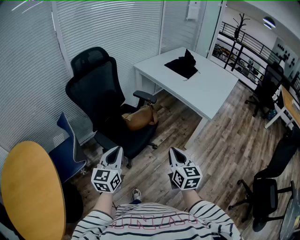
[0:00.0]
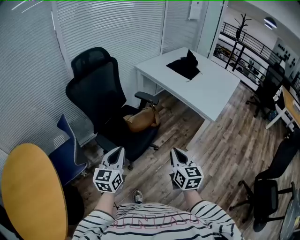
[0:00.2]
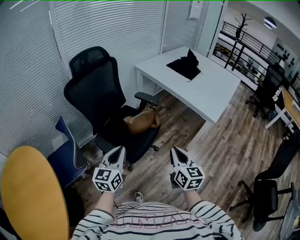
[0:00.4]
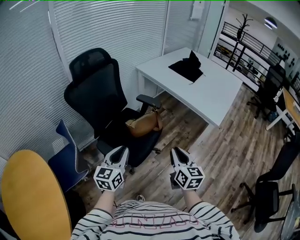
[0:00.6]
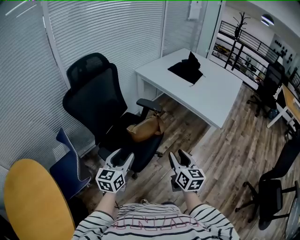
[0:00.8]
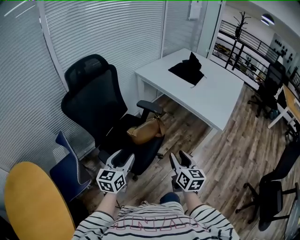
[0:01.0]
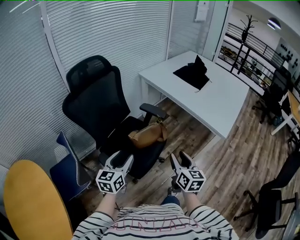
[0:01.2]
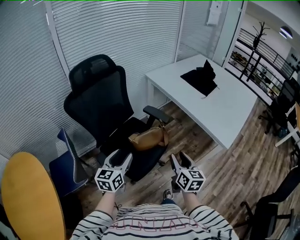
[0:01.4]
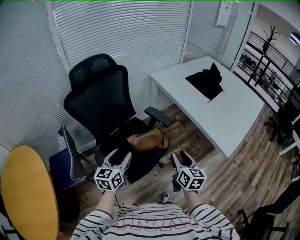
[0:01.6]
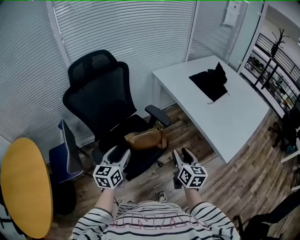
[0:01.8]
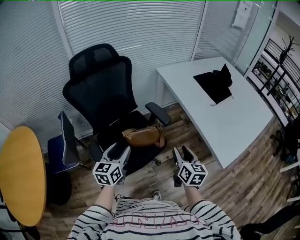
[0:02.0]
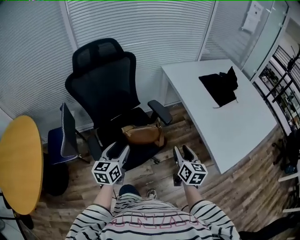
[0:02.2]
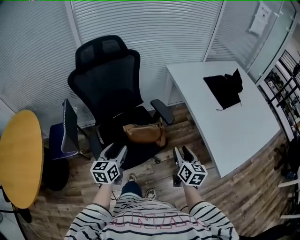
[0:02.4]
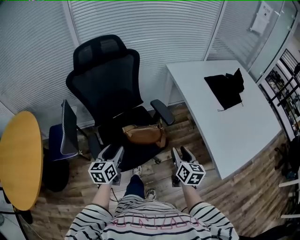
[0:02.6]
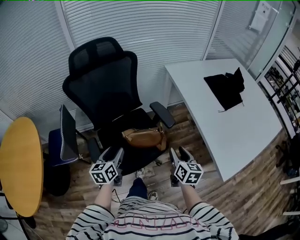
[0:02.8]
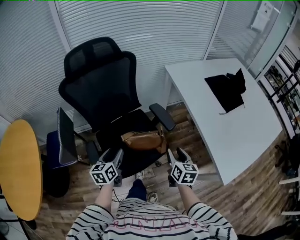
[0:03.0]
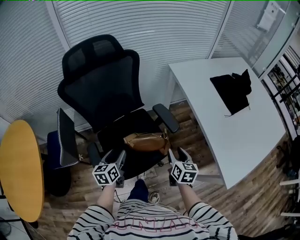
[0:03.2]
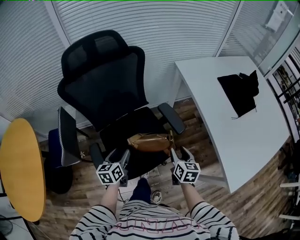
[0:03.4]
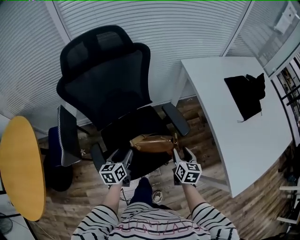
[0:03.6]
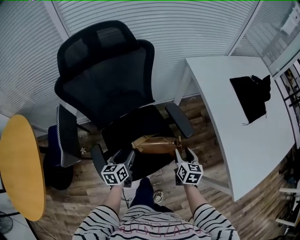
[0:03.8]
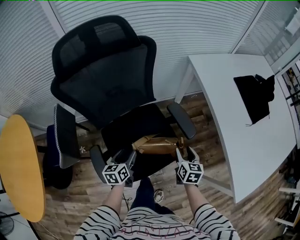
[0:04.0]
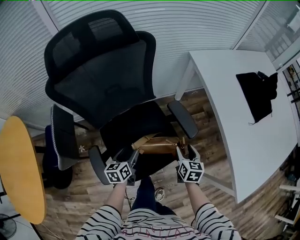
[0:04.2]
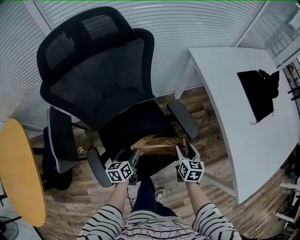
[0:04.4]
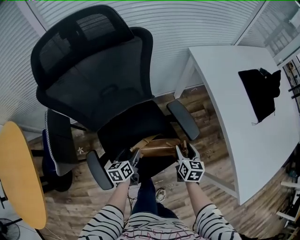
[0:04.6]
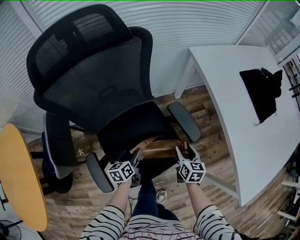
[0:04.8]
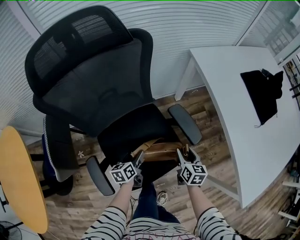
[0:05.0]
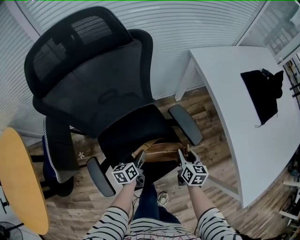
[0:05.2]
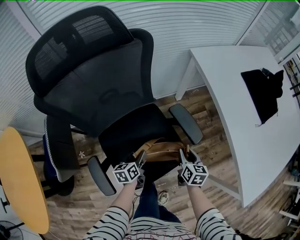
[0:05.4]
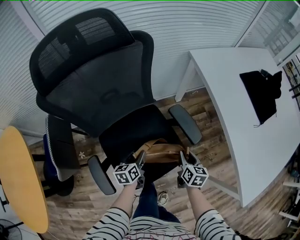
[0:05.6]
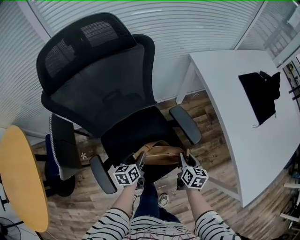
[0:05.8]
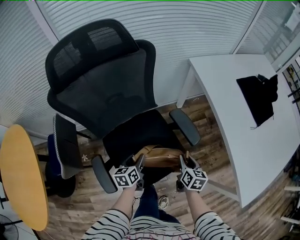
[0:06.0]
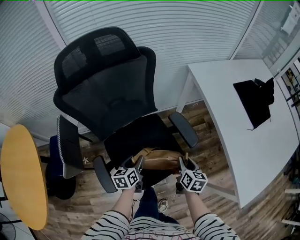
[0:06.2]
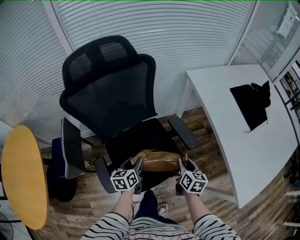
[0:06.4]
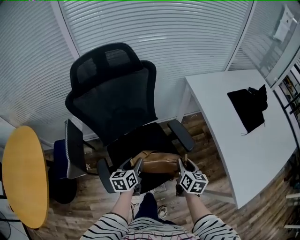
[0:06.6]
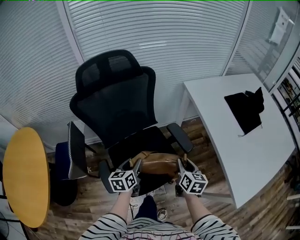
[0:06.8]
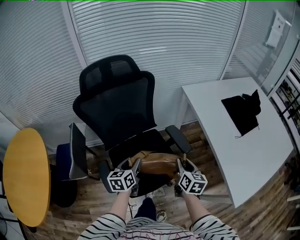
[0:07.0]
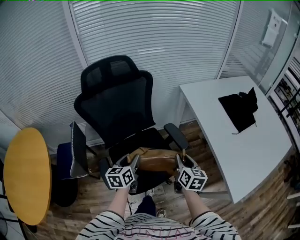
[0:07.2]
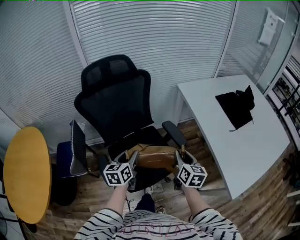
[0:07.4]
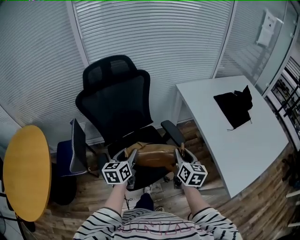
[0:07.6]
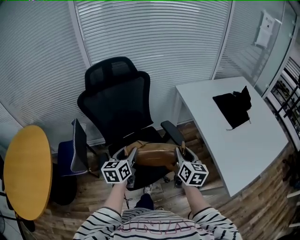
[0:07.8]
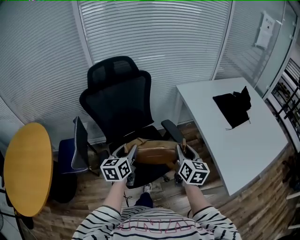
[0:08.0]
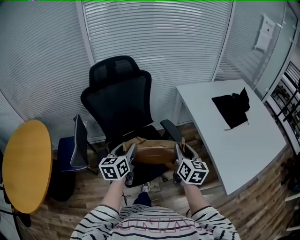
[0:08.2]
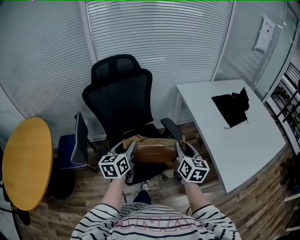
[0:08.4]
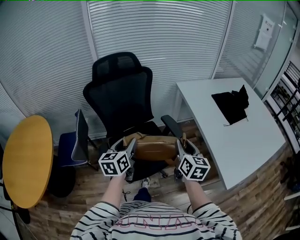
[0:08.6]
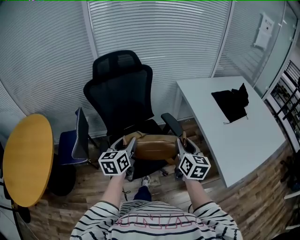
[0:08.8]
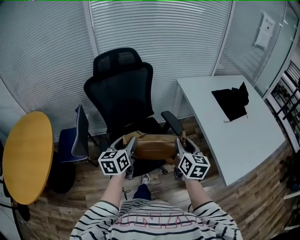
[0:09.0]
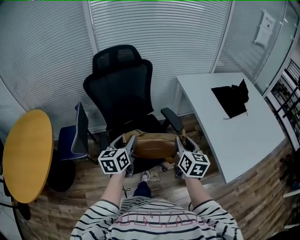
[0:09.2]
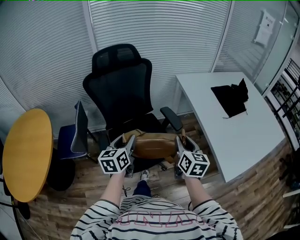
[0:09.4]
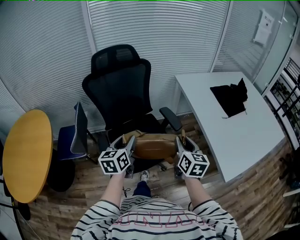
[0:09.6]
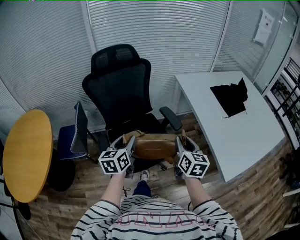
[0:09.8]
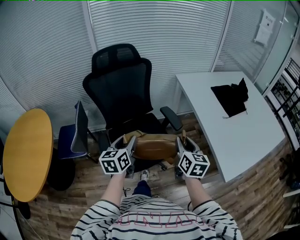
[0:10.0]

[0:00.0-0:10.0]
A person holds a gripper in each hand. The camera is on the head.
0:00.0 to 0:01.4: The two grippers go approximately 20 cm forward. The right gripper opens; the left gripper opens its fingers.
0:01.4 to 0:02.8: The right gripper travels forward, to the right and downward by roughly 20 cm. Meanwhile the left gripper moves downward and forward, approximately 10 cm, and swivels some 30 degrees.
0:02.8 to 0:04.2: The grippers both shift downward and forward by about 20 cm.
0:04.2 to 0:05.8: The right gripper closes.
0:05.8 to 0:07.2: Both grippers travel together upward, about 20 cm.
0:07.2 to 0:08.6: The grippers both shift upward and backward by approximately 15 cm.
0:08.6 to 0:10.0: The grippers move only a little.

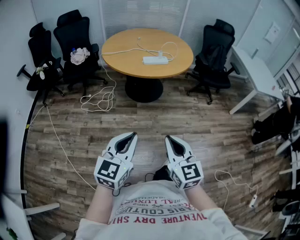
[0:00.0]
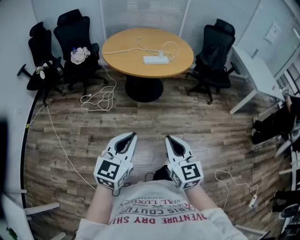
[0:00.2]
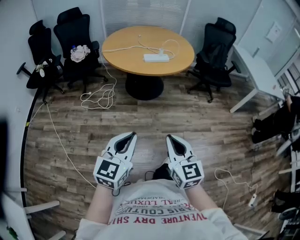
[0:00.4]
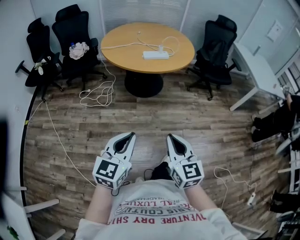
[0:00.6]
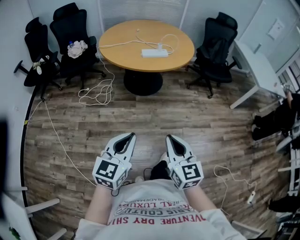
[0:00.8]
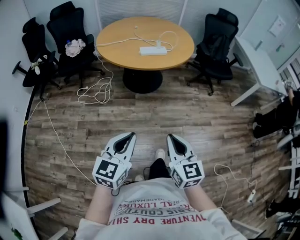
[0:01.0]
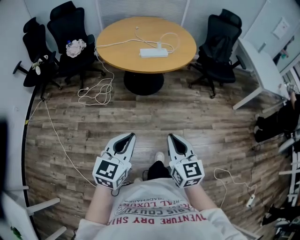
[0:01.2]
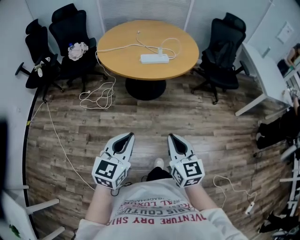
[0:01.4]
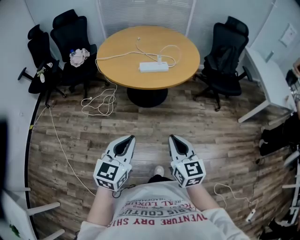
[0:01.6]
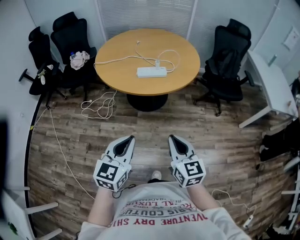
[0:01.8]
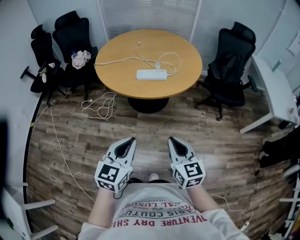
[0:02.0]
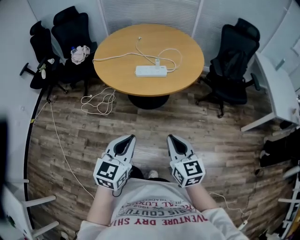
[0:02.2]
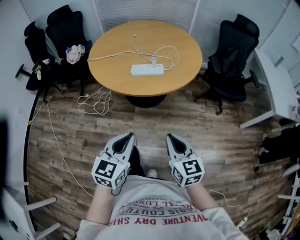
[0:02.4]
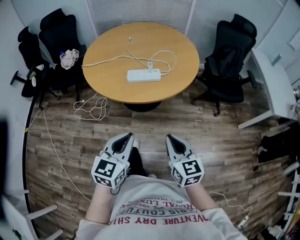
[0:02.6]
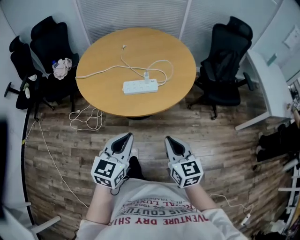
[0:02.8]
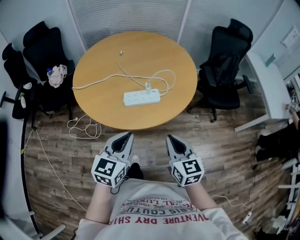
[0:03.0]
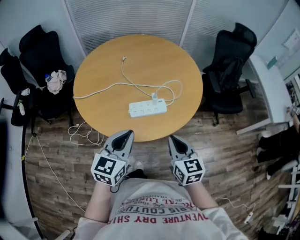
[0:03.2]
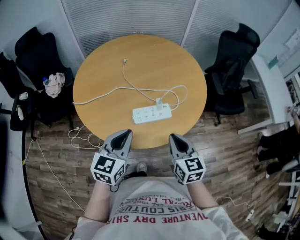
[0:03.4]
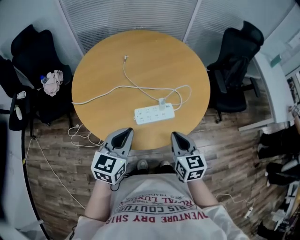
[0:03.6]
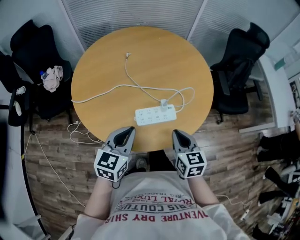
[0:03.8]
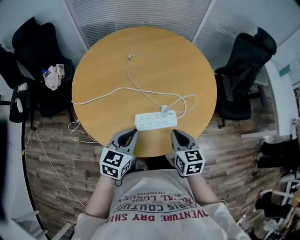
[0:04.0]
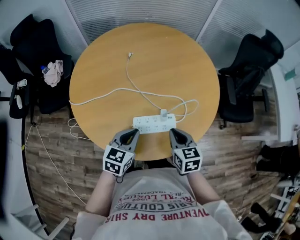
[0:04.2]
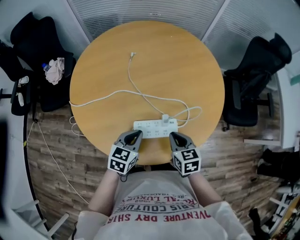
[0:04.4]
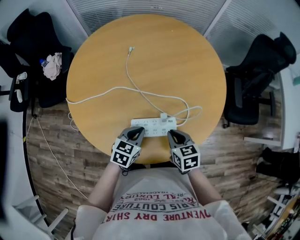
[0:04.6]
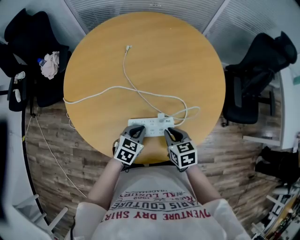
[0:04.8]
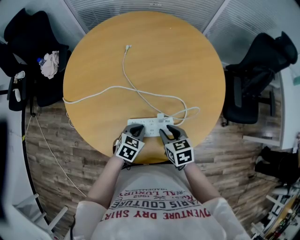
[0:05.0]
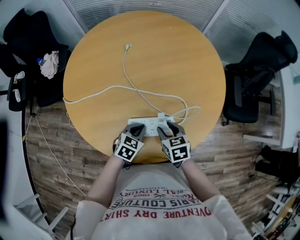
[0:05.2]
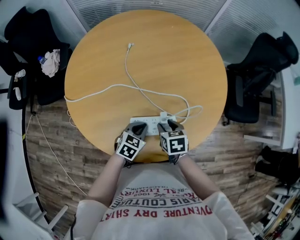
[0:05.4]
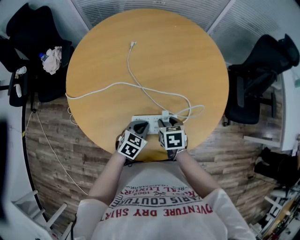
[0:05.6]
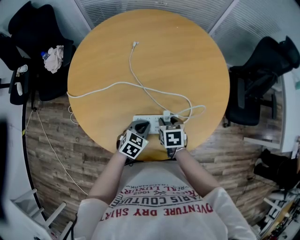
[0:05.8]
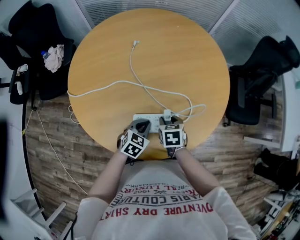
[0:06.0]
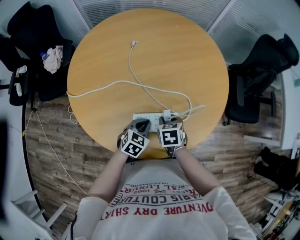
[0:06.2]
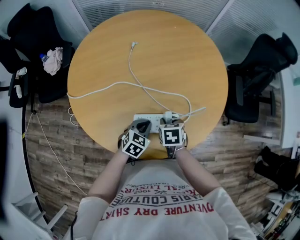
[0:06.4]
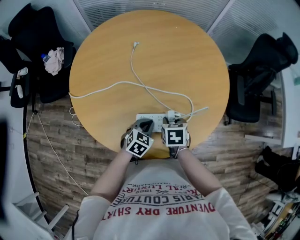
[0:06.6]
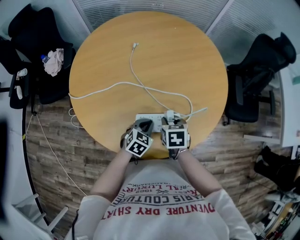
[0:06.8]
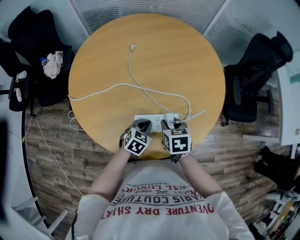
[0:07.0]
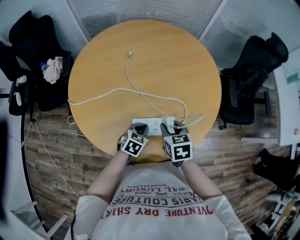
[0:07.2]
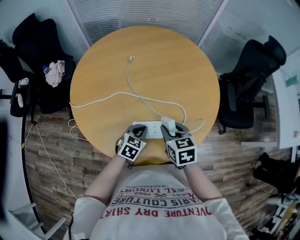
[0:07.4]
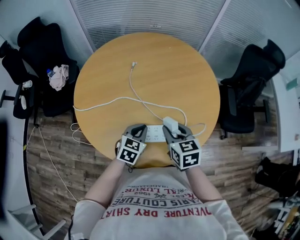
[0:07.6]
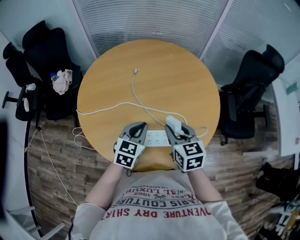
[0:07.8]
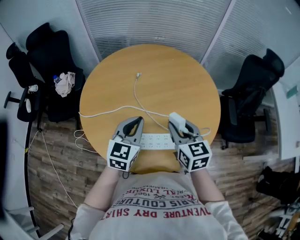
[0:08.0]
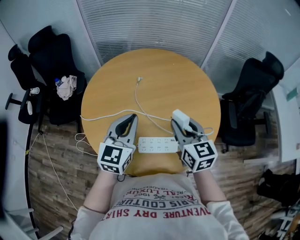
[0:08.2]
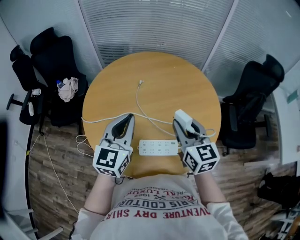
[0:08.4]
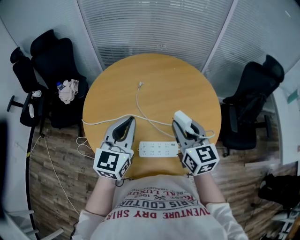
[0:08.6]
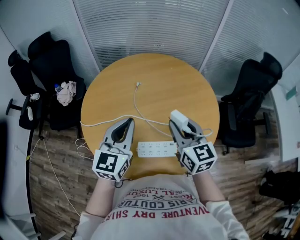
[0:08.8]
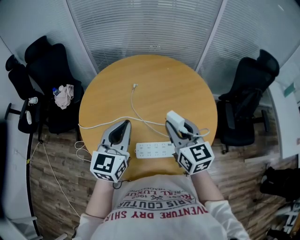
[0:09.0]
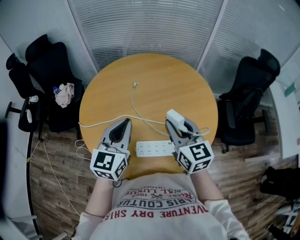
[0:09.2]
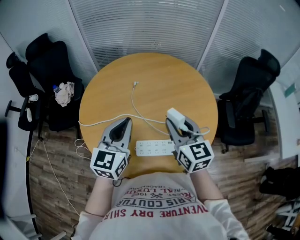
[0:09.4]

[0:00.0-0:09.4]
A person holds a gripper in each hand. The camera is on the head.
0:00.0 to 0:01.6: The left gripper shifts approximately 15 cm forward. Meanwhile the right gripper goes some 20 cm forward and to the right.
0:01.6 to 0:03.2: The grippers both shift forward by approximately 40 cm.
0:03.2 to 0:04.8: The right gripper heads forward and downward, covering roughly 25 cm, and turns by approximately 30 degrees; the left gripper goes approximately 30 cm downward and forward, and points its fingers roughly 30 degrees further downward.
0:04.8 to 0:06.2: The right gripper moves about 5 cm, and opens up.
0:06.2 to 0:07.8: The two grippers go roughly 20 cm upward. The right gripper tips its fingers upward by roughly 30 degrees. The left gripper turns by some 20 degrees.
0:07.8 to 0:09.4: The left gripper is displaced upward by some 15 cm, and rotates roughly 20 degrees. Meanwhile the right gripper shifts roughly 10 cm upward.

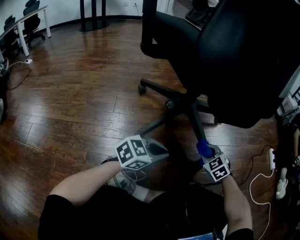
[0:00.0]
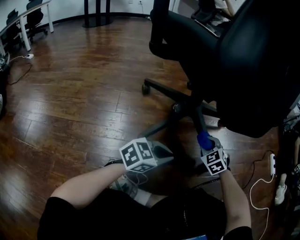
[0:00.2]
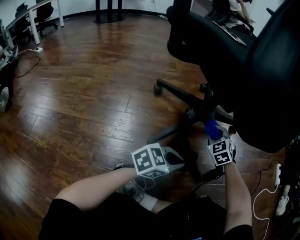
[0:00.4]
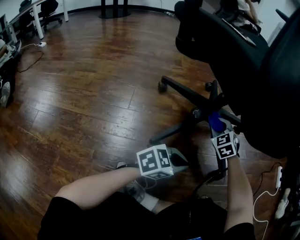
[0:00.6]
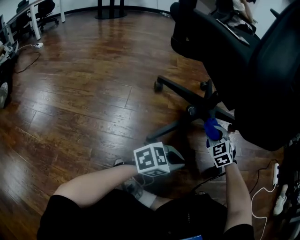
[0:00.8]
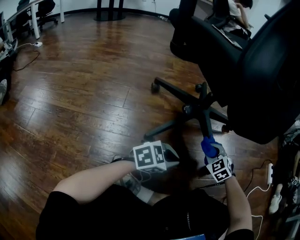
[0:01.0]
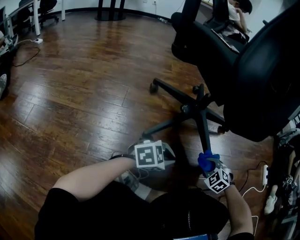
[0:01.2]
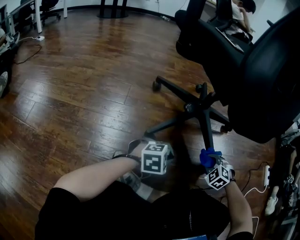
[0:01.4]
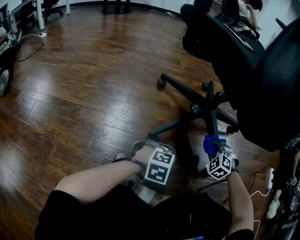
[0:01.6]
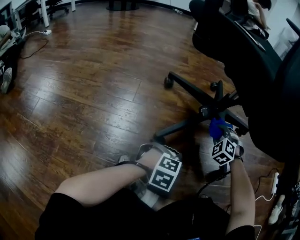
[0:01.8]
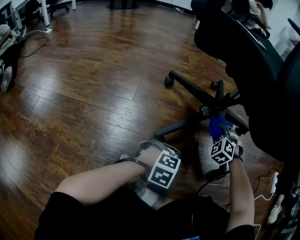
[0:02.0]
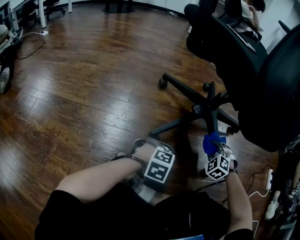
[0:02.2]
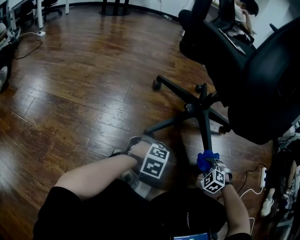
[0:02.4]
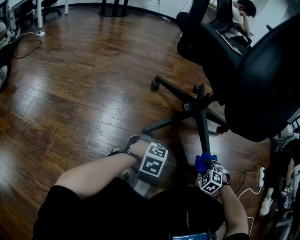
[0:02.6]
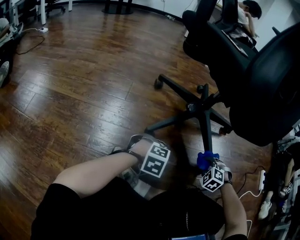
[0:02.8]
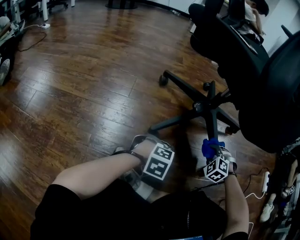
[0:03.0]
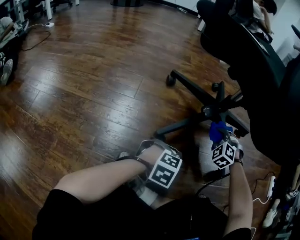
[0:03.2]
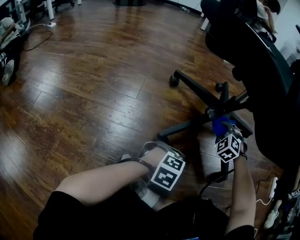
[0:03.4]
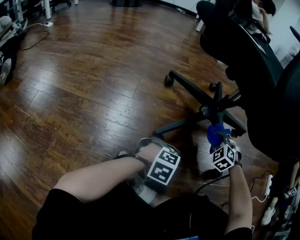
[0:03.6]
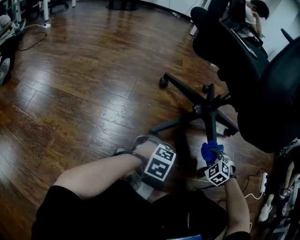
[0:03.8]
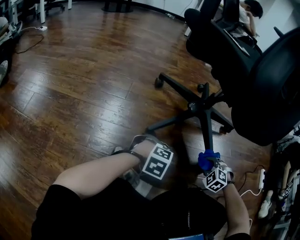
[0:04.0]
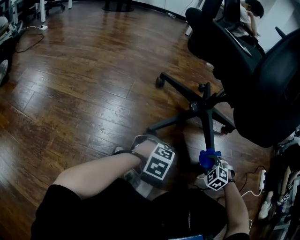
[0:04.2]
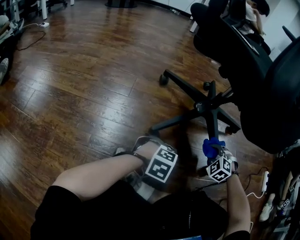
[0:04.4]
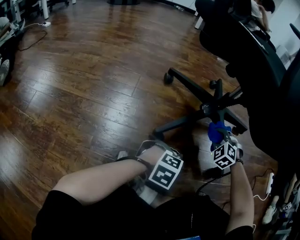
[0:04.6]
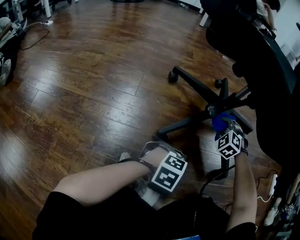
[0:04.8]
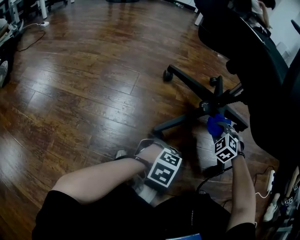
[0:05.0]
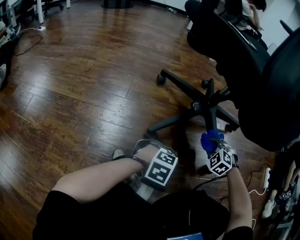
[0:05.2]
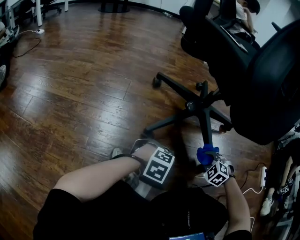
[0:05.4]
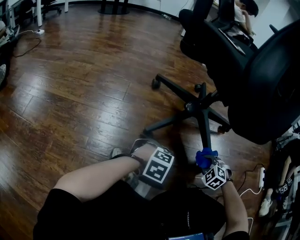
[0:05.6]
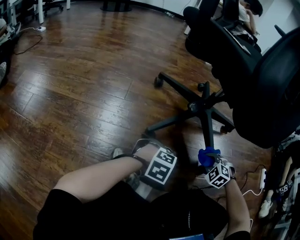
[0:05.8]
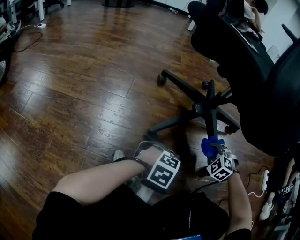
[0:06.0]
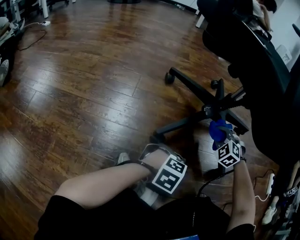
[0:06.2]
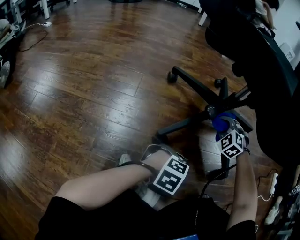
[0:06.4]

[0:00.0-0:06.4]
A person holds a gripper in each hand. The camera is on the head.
0:00.0 to 0:01.6: The left gripper shifts some 10 cm downward, and turns by roughly 40 degrees.
